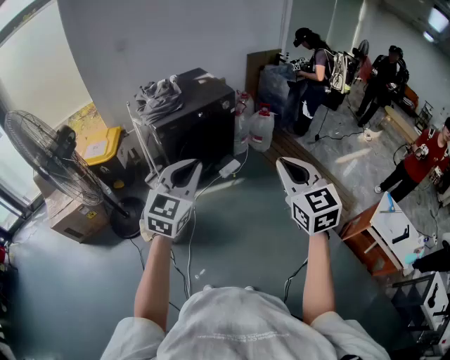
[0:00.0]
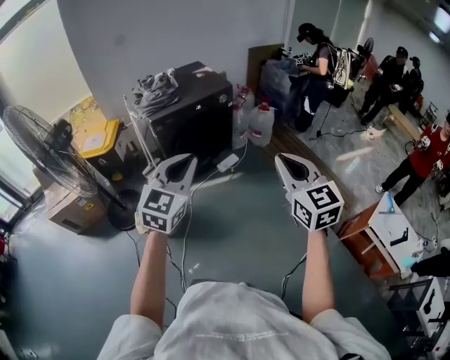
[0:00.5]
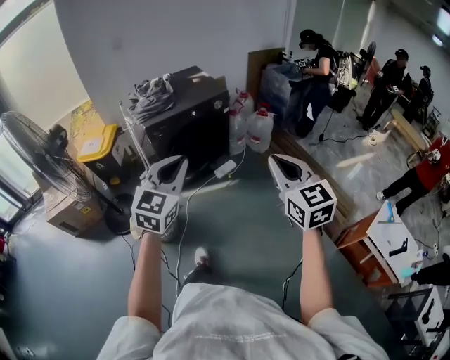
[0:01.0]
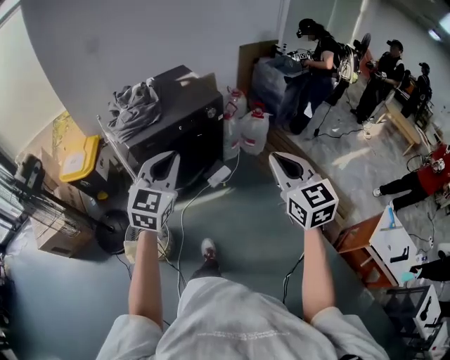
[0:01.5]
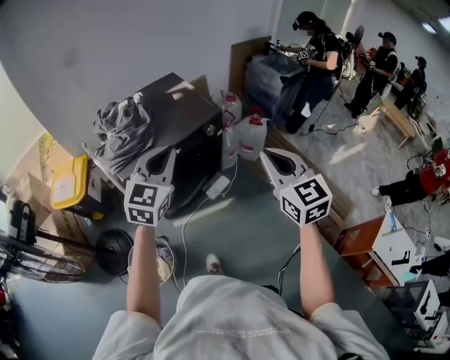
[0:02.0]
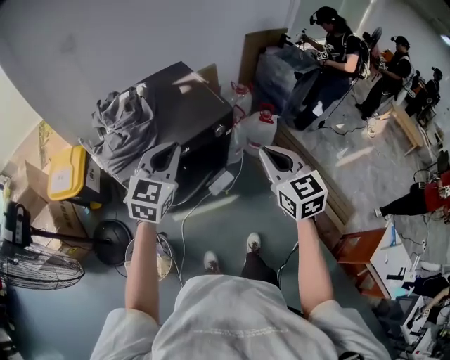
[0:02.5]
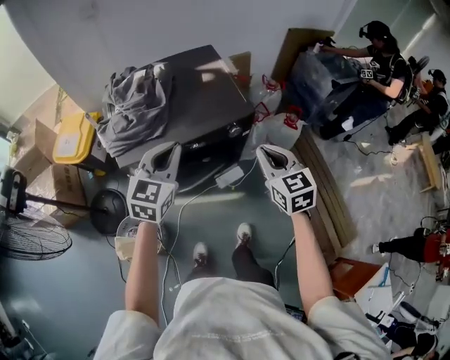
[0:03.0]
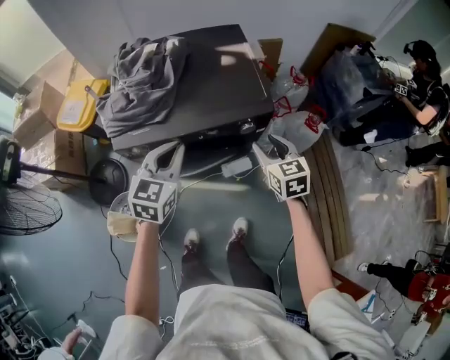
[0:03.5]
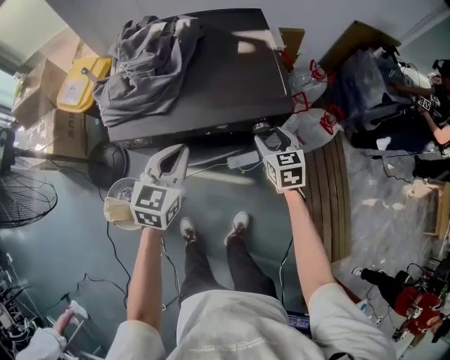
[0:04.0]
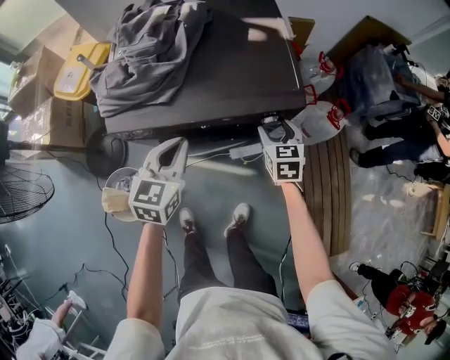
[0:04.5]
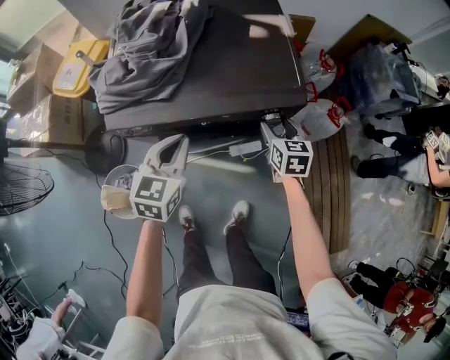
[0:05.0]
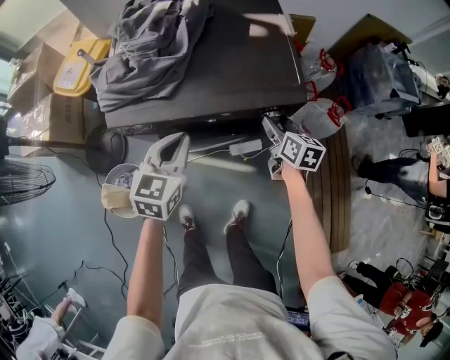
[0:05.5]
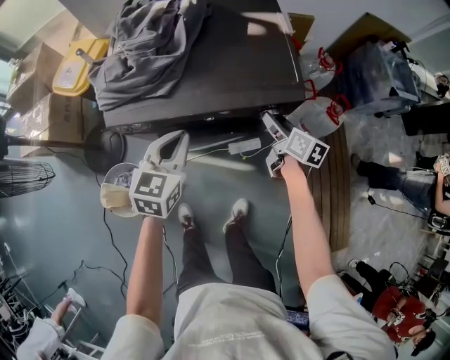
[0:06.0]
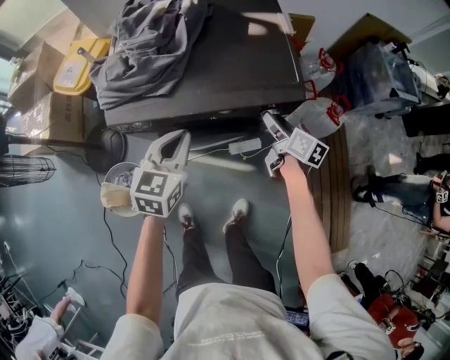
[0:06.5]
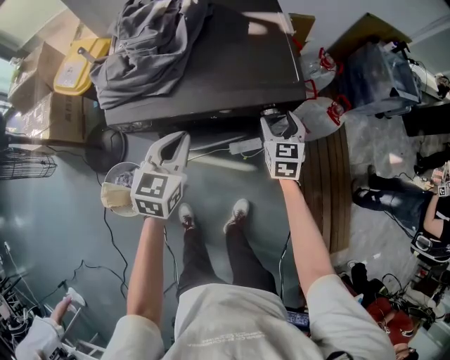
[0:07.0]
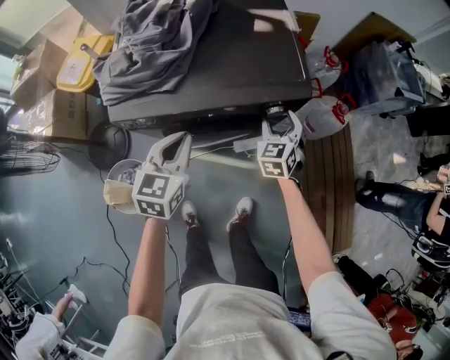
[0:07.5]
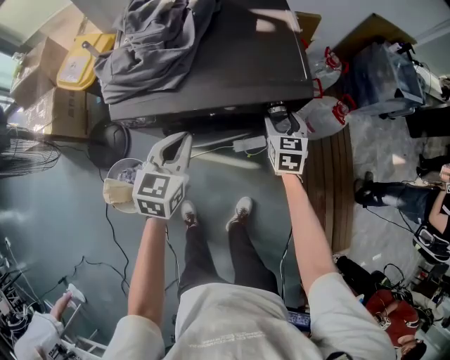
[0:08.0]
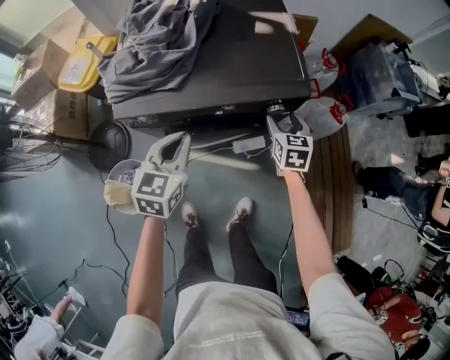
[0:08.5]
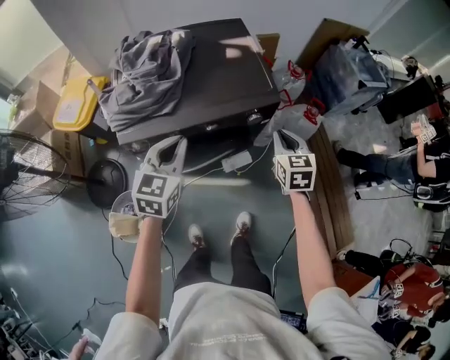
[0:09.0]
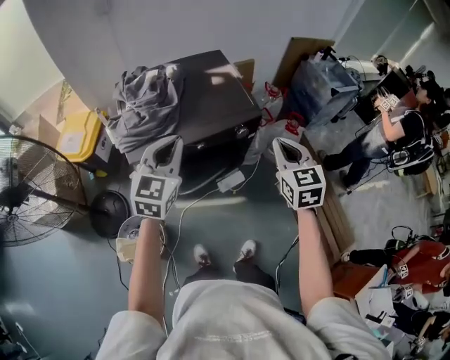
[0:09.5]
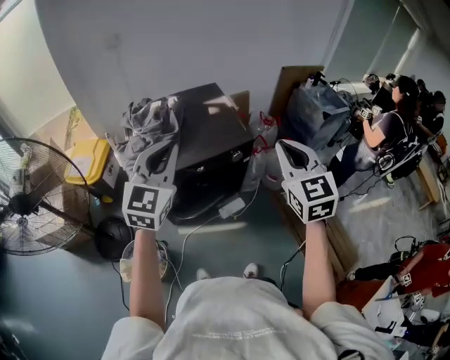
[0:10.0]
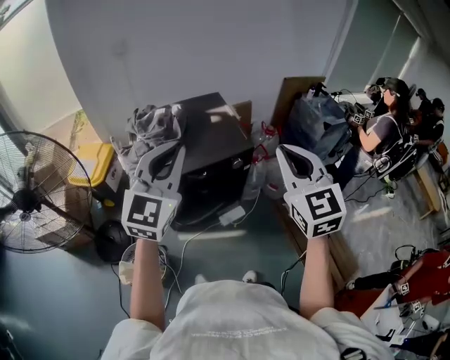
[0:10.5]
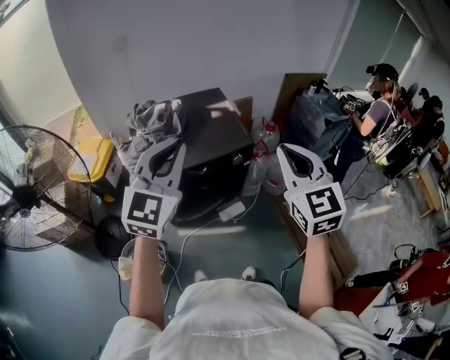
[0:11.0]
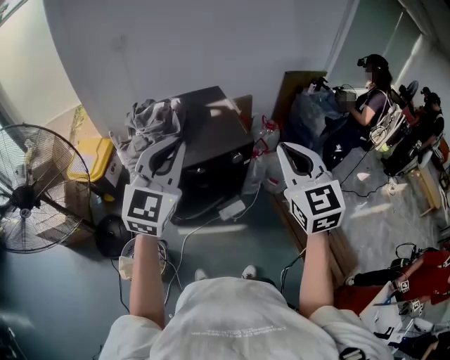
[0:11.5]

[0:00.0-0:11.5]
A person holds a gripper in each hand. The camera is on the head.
0:00.0 to 0:02.0: The two grippers go approximately 40 cm forward.
0:02.0 to 0:04.0: The right gripper shifts some 50 cm forward and downward, changes its angle by approximately 30 degrees, and opens up. The left gripper is displaced downward and forward by approximately 25 cm, and turns by roughly 40 degrees.
0:04.0 to 0:06.0: The right gripper twists some 40 degrees clockwise, seen from behind.
0:06.0 to 0:07.5: The right gripper rolls counterclockwise, seen from behind, by some 60 degrees.
0:07.5 to 0:09.5: The left gripper is displaced upward by roughly 20 cm, and turns by some 30 degrees, while the right gripper moves upward and backward, some 35 cm, and closes up.
0:09.5 to 0:11.5: The grippers both shift upward and backward by some 20 cm.

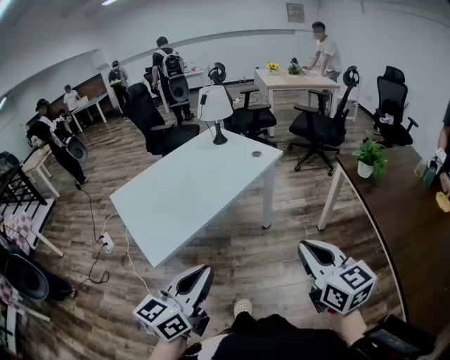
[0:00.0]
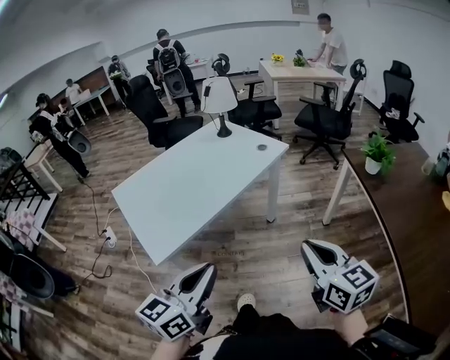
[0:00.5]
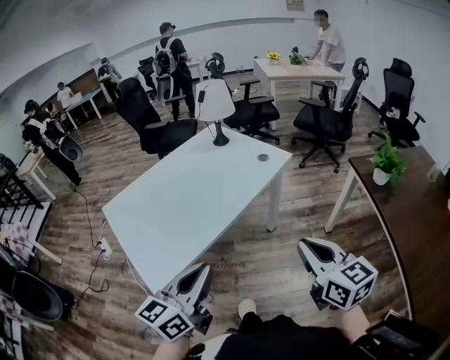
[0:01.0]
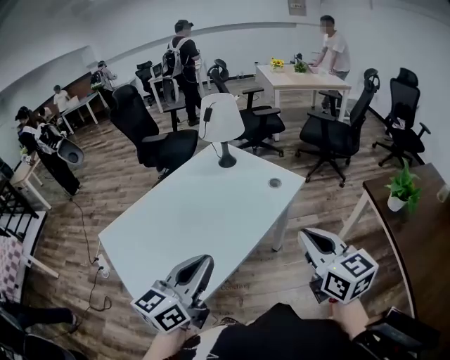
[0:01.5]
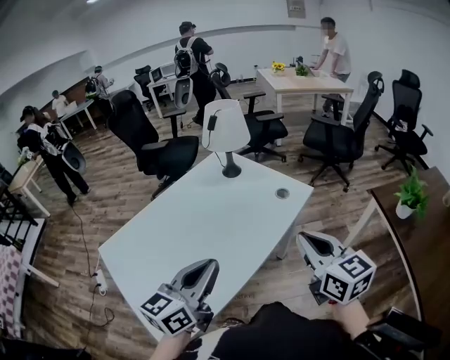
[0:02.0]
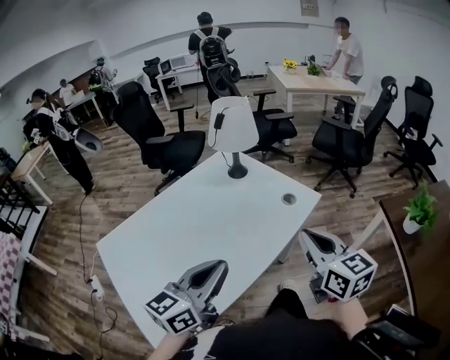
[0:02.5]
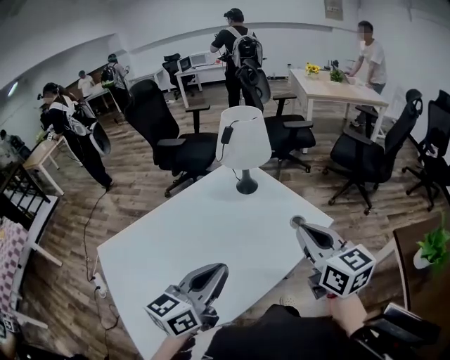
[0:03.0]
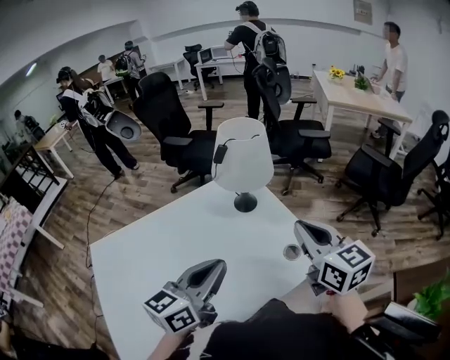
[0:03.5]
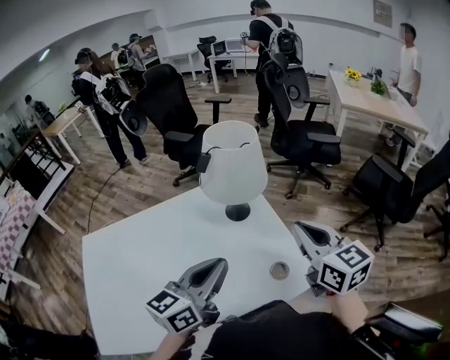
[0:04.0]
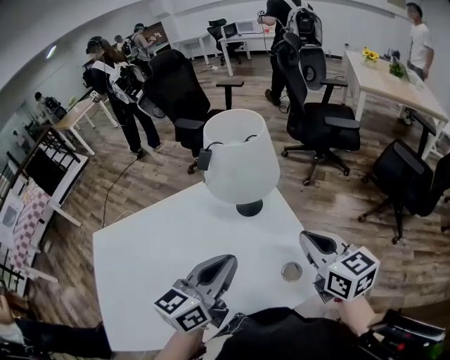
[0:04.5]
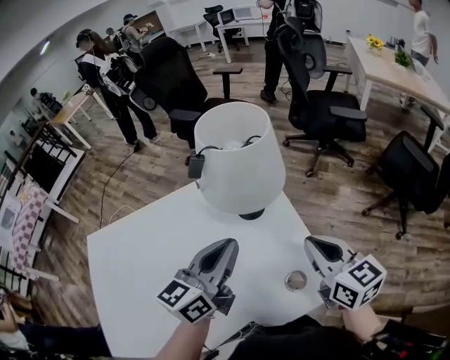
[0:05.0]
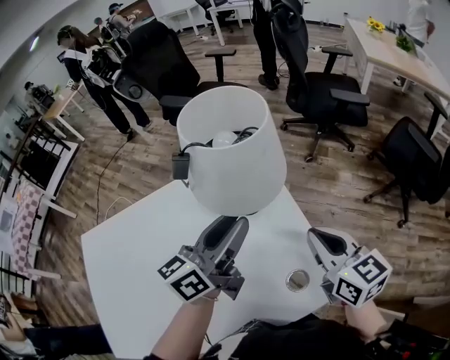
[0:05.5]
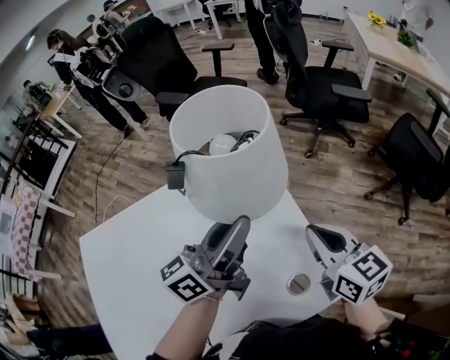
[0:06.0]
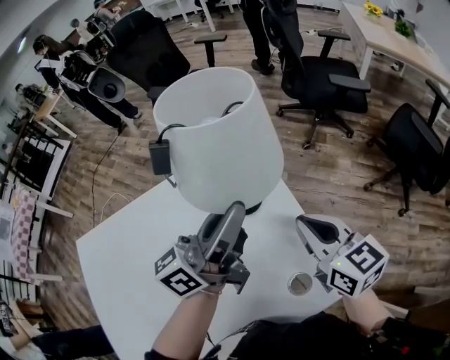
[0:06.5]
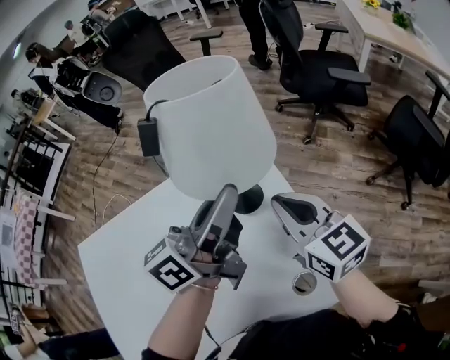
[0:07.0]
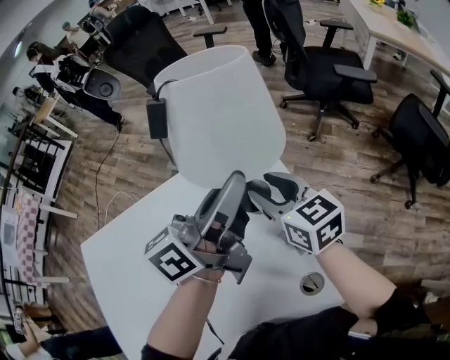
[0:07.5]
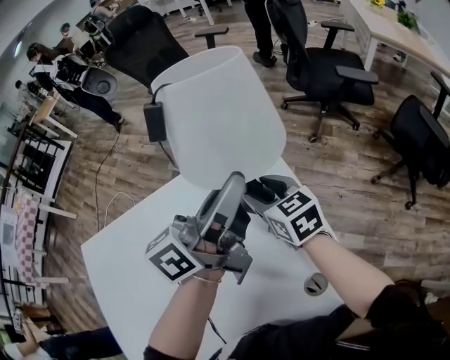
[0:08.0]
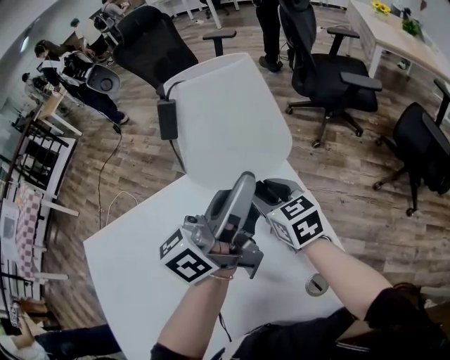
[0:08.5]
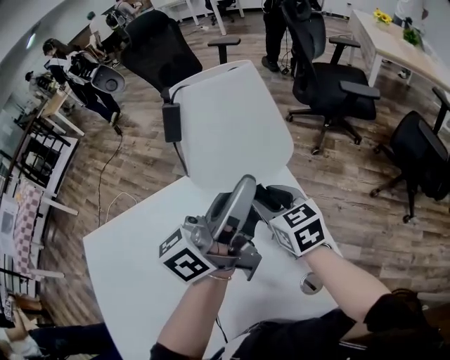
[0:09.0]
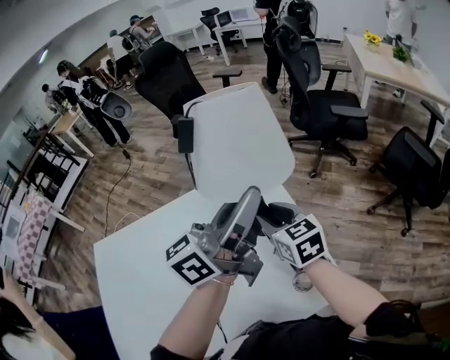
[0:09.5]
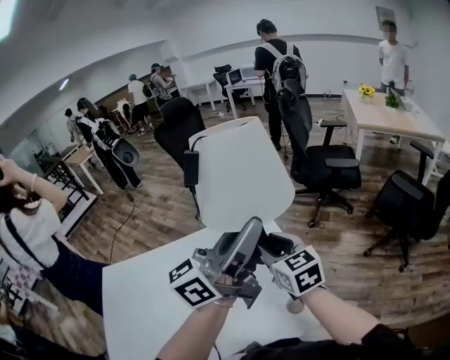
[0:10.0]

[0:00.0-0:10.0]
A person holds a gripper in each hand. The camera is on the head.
0:00.0 to 0:02.0: The grippers both shift forward by roughly 35 cm.
0:02.0 to 0:04.0: The left gripper goes some 35 cm forward and to the right, and rotates approximately 20 degrees, while the right gripper moves forward, roughly 40 cm, and rotates about 30 degrees.
0:04.0 to 0:06.0: The left gripper heads forward, covering roughly 20 cm, rotates some 30 degrees, and opens its fingers; the right gripper heads downward and forward, covering some 15 cm.
0:06.0 to 0:08.0: The right gripper goes roughly 20 cm to the left, forward and downward, and opens. The left gripper travels forward by roughly 5 cm.
0:08.0 to 0:10.0: The grippers both shift upward and backward by roughly 20 cm. The left gripper rotates some 30 degrees.

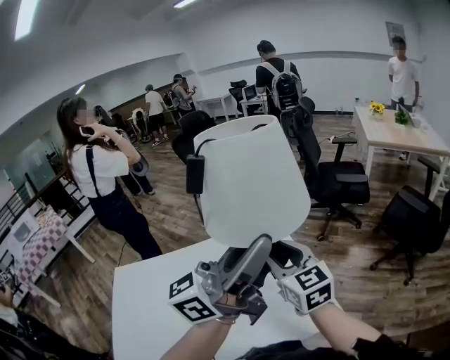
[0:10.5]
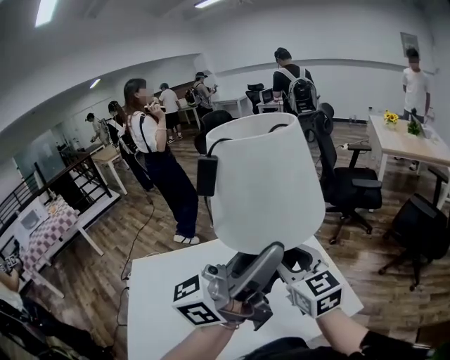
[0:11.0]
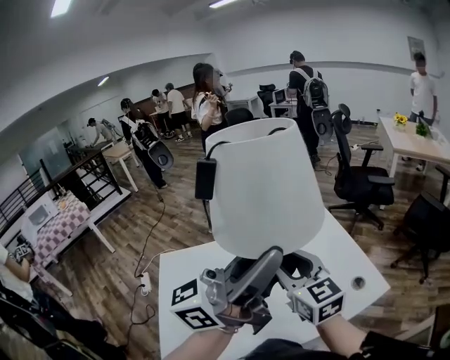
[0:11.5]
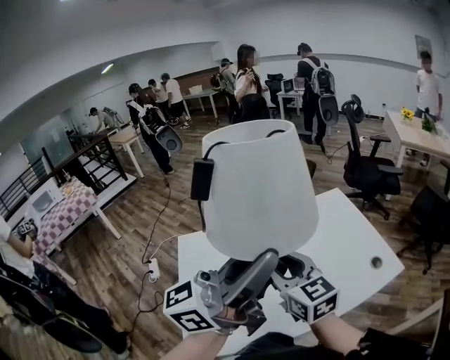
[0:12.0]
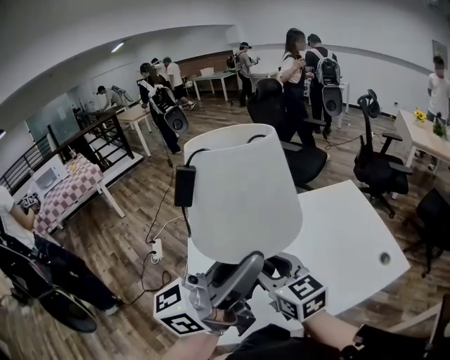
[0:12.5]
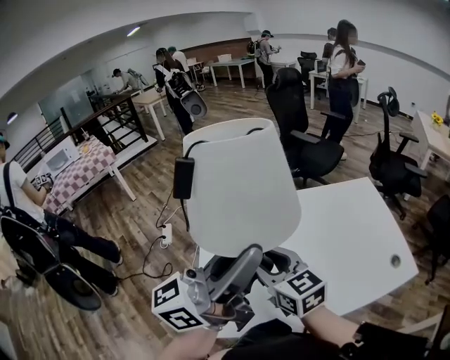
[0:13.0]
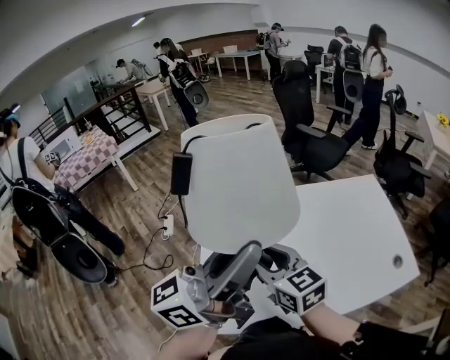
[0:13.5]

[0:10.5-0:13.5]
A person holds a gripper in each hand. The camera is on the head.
0:10.5 to 0:12.0: The grippers both shift to the left and backward by some 40 cm.
0:12.0 to 0:13.5: The right gripper travels to the left and downward by about 15 cm. Meanwhile the left gripper moves to the left, approximately 10 cm.

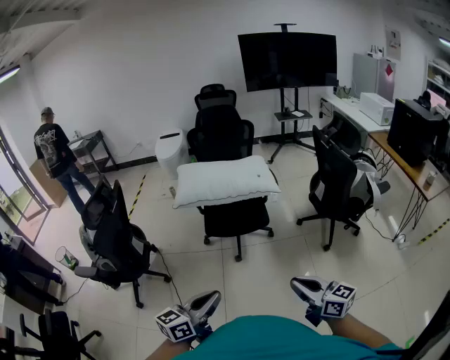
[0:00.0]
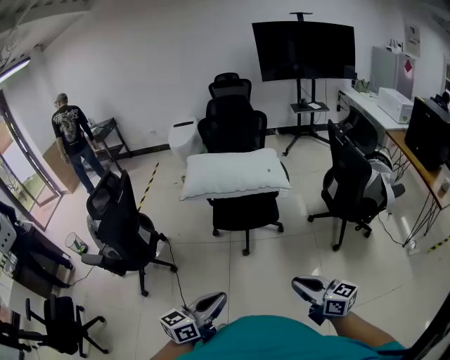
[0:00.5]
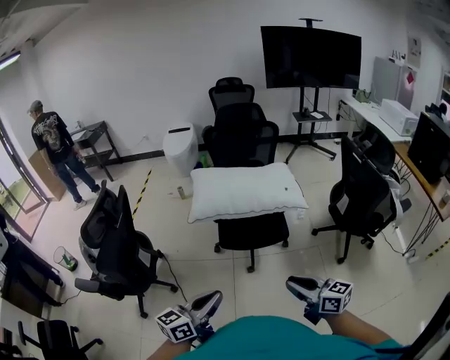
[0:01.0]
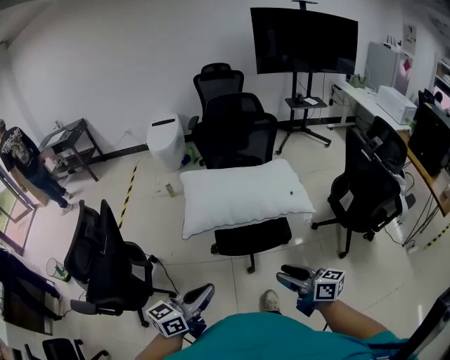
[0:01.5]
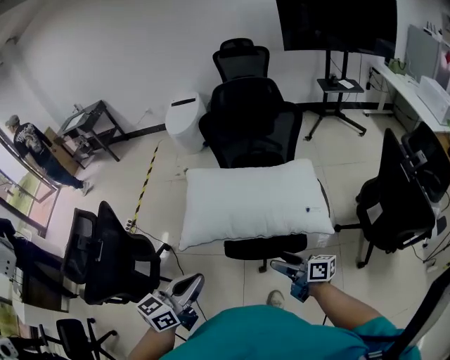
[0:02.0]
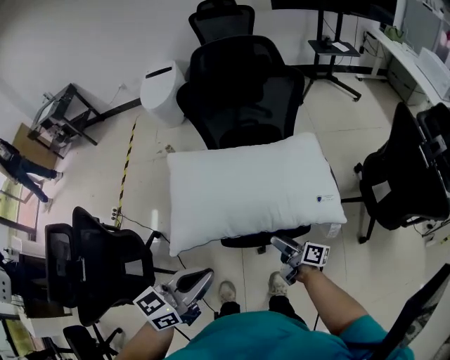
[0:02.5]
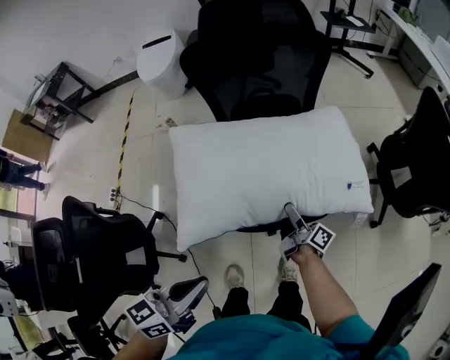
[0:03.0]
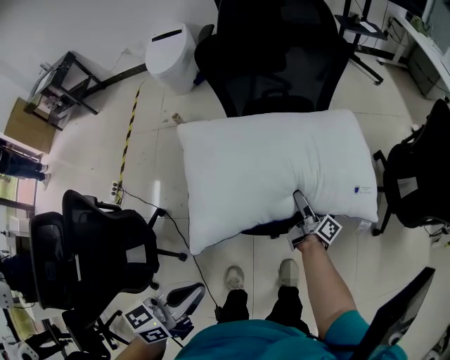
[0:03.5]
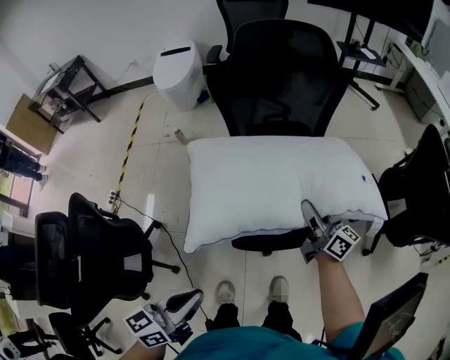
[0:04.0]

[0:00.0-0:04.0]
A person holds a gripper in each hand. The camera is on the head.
0:00.0 to 0:02.0: The two grippers travel together, forward, approximately 50 cm. The right gripper turns by approximately 40 degrees, and opens its fingers.
0:02.0 to 0:04.0: The right gripper reaches about 15 cm downward, then returns, rotates roughly 30 degrees, and closes up, while the left gripper ends up approximately 15 cm from where it was.
